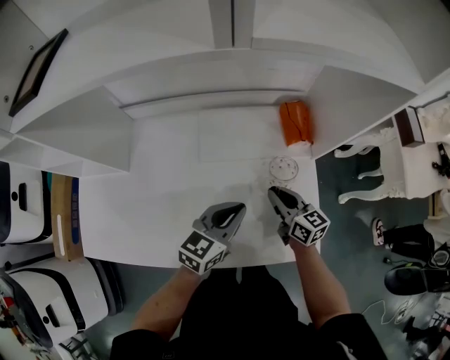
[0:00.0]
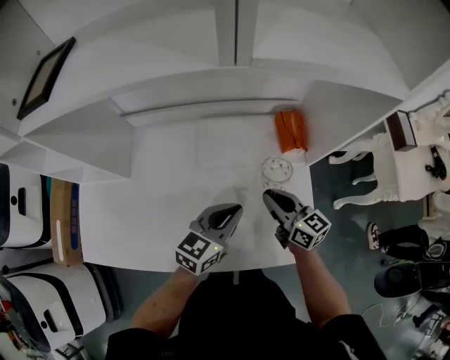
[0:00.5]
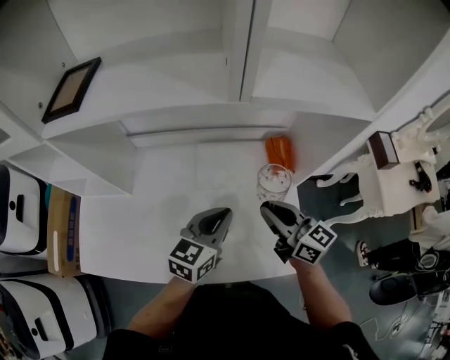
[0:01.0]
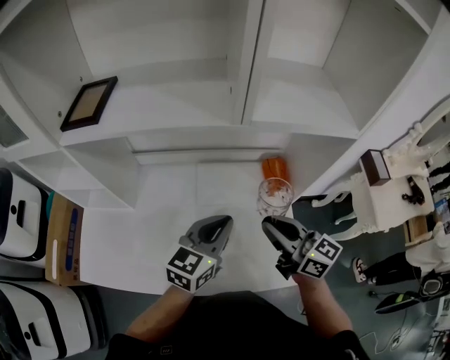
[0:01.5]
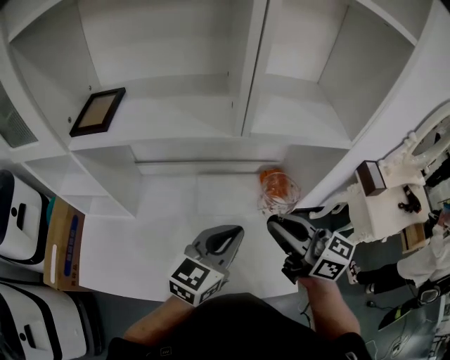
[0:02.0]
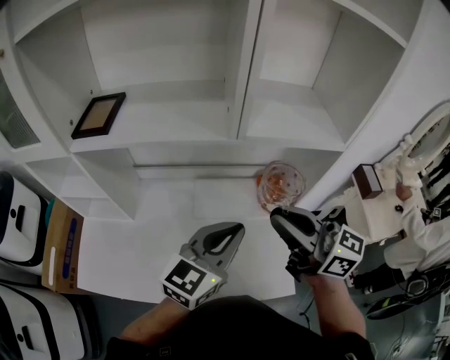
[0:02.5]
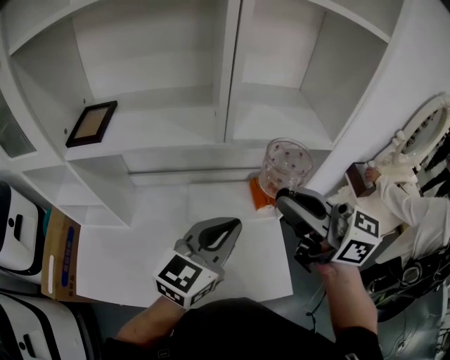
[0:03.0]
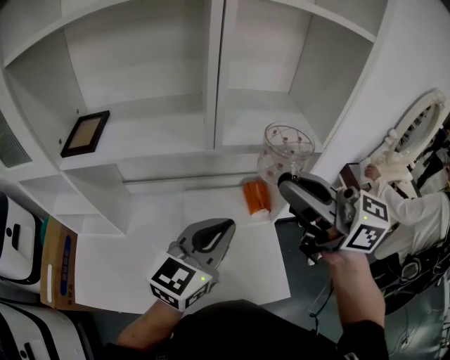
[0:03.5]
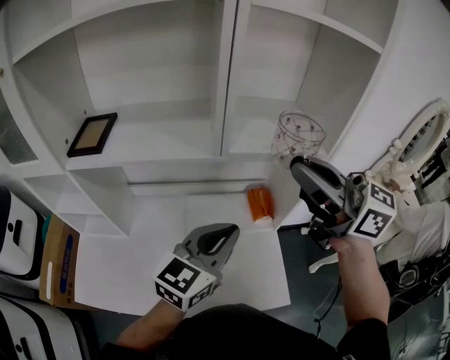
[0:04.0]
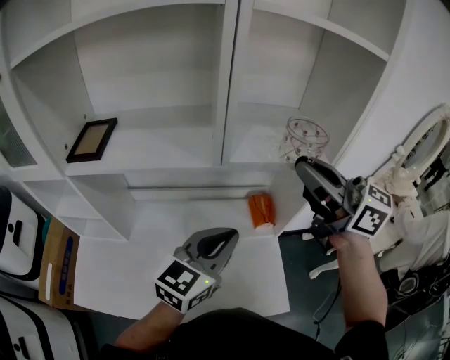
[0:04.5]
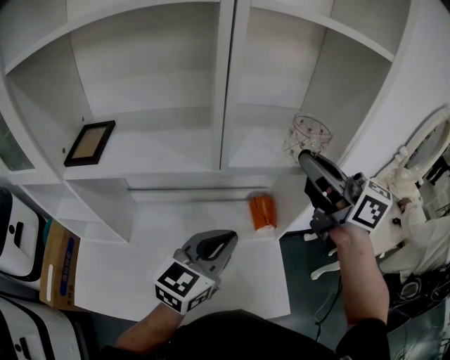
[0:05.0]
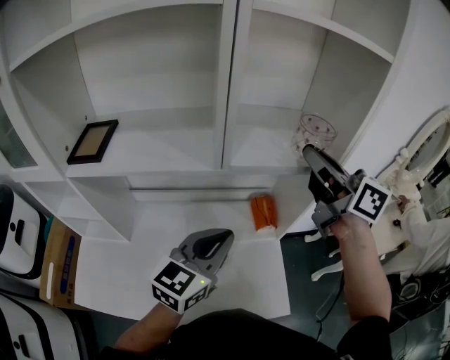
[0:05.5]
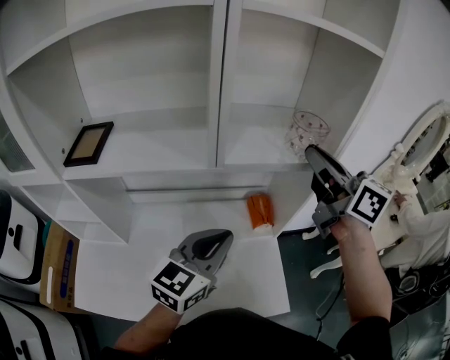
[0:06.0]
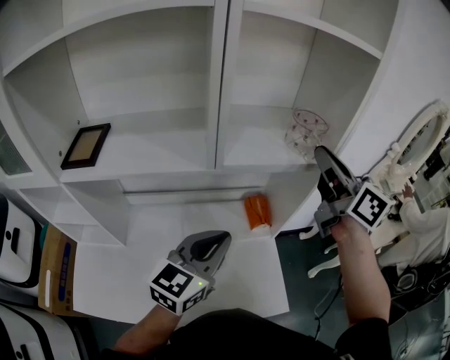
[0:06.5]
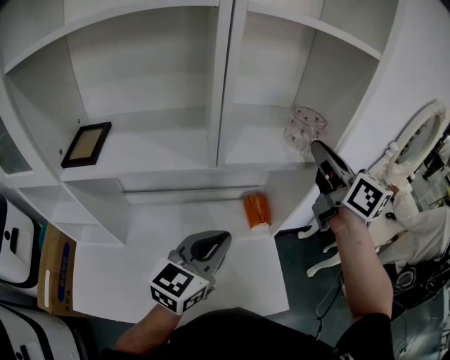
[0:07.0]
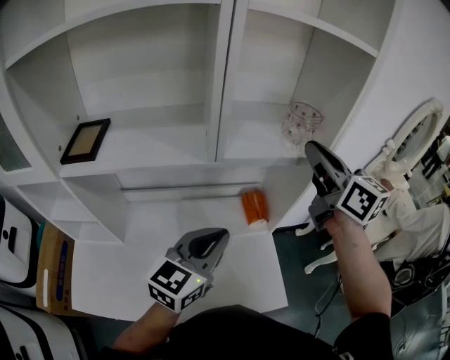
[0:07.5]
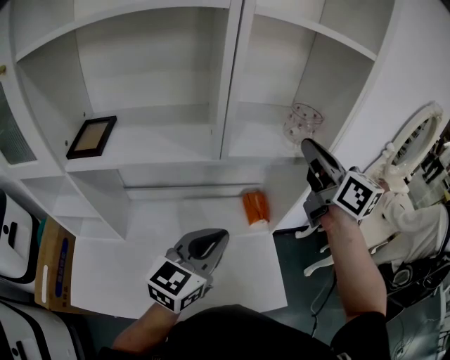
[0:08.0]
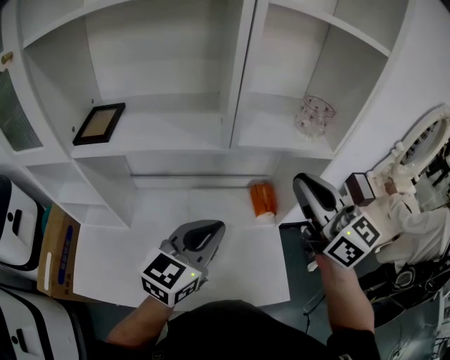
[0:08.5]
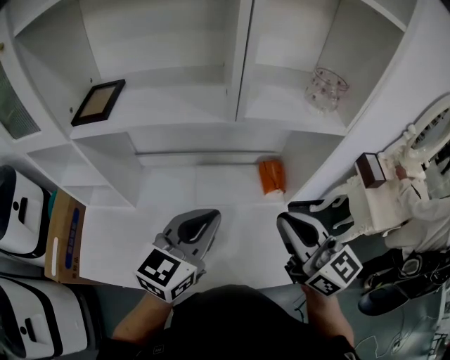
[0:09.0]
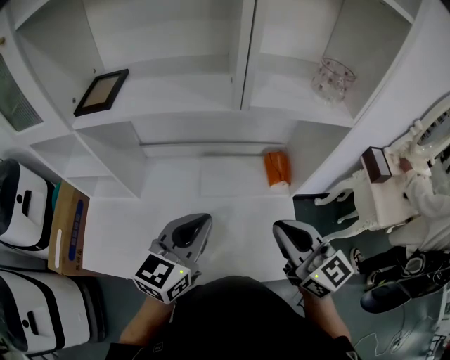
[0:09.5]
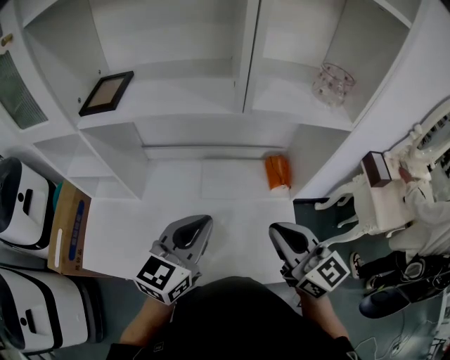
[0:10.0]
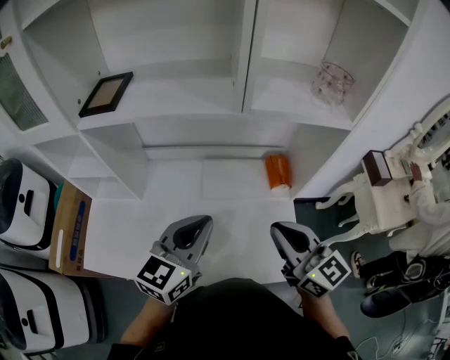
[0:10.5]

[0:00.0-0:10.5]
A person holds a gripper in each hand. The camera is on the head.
0:00.0 to 0:02.0: The left gripper heads upward, covering about 20 cm. Meanwhile the right gripper moves upward, approximately 35 cm, and rotates roughly 30 degrees.
0:02.0 to 0:04.0: The left gripper heads upward, covering some 10 cm. The right gripper goes roughly 20 cm upward.
0:04.0 to 0:06.5: The right gripper is displaced to the right and forward by roughly 15 cm, and turns by some 30 degrees.
0:06.5 to 0:08.5: The right gripper is displaced backward and to the left by some 15 cm, and swivels roughly 20 degrees.
0:08.5 to 0:10.5: The right gripper goes about 20 cm downward and backward; the left gripper moves approximately 10 cm.

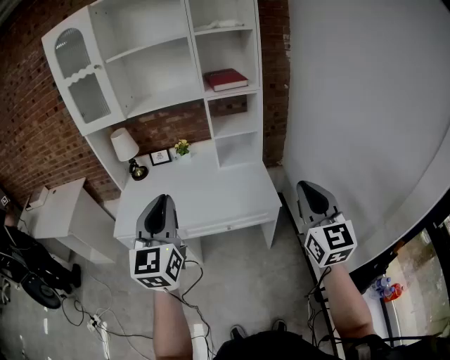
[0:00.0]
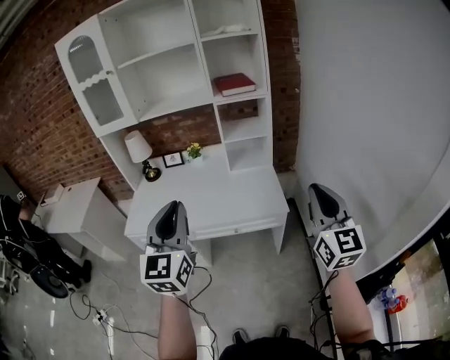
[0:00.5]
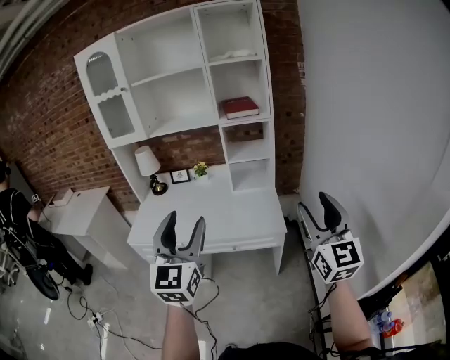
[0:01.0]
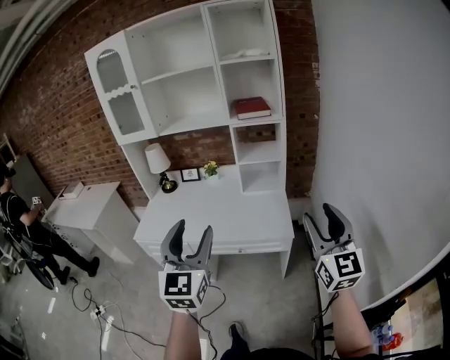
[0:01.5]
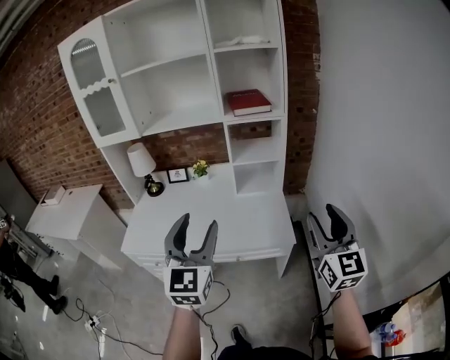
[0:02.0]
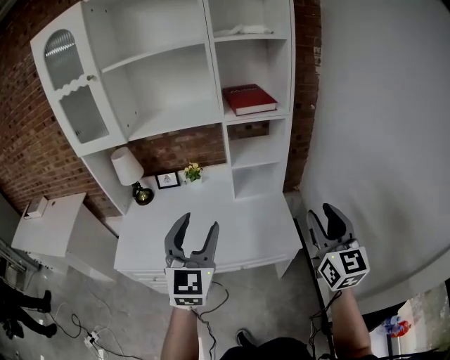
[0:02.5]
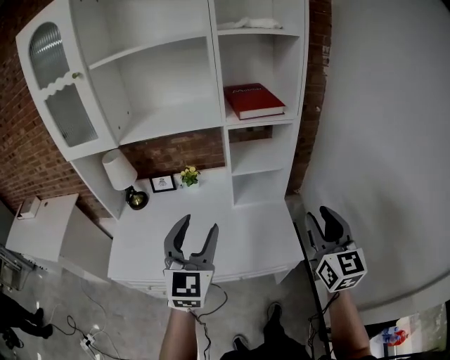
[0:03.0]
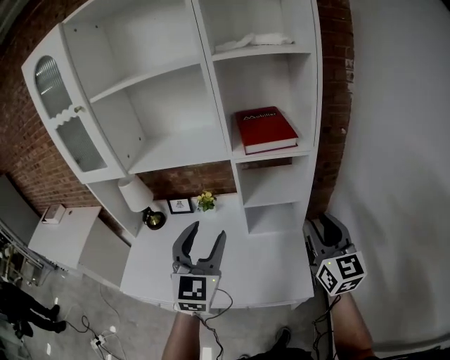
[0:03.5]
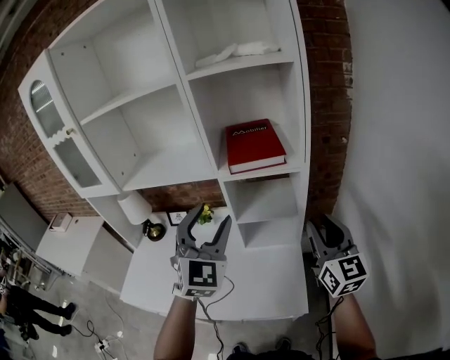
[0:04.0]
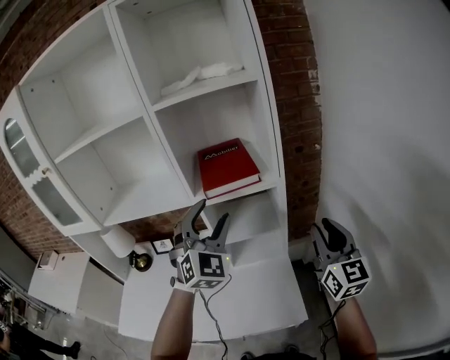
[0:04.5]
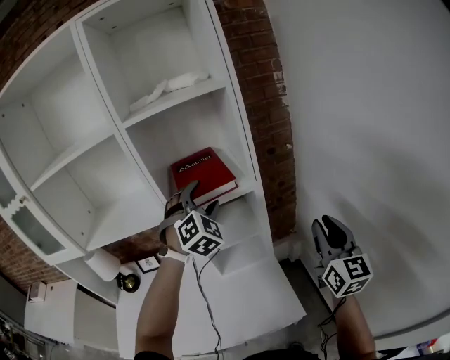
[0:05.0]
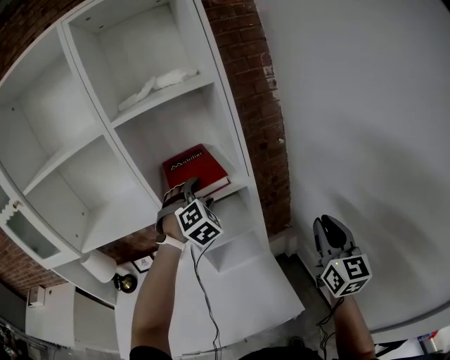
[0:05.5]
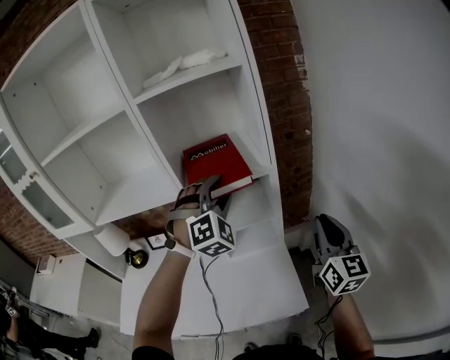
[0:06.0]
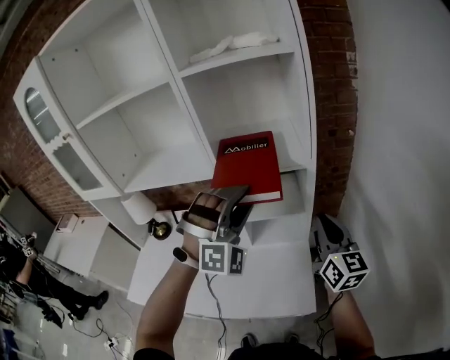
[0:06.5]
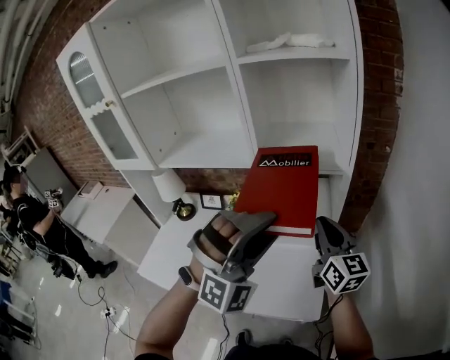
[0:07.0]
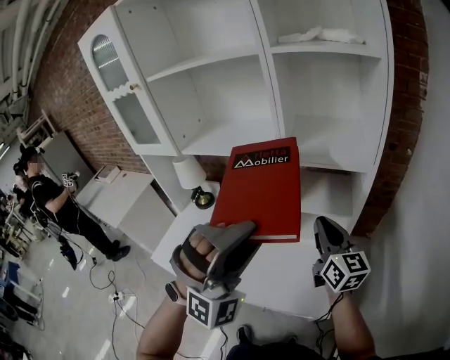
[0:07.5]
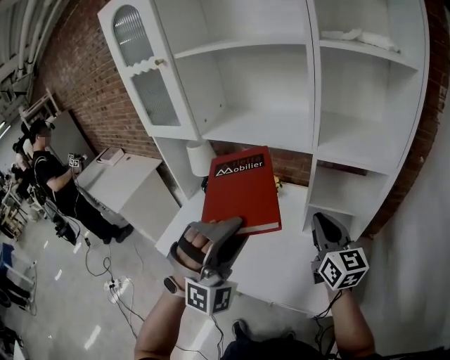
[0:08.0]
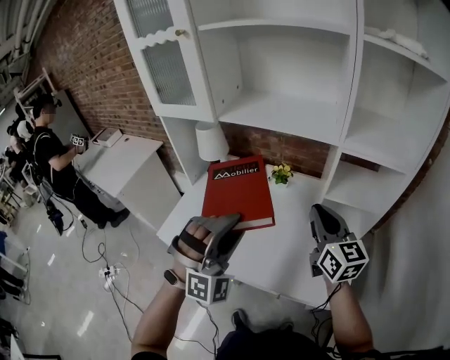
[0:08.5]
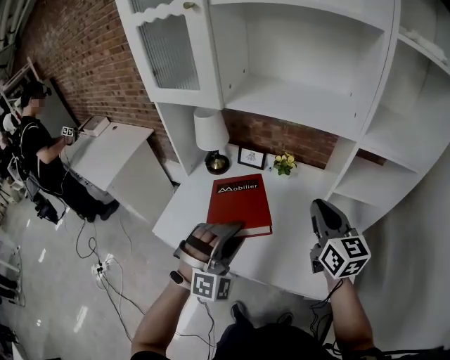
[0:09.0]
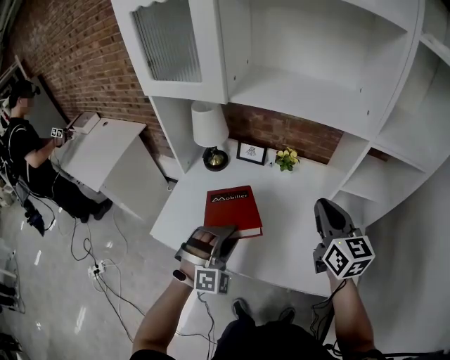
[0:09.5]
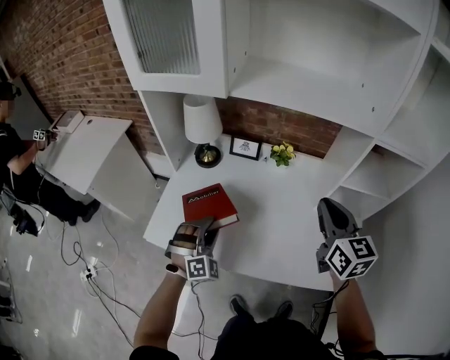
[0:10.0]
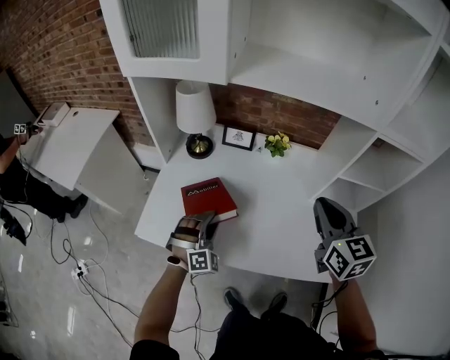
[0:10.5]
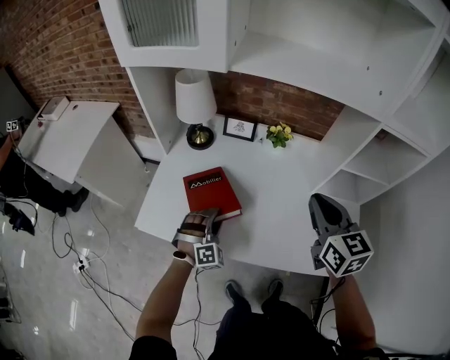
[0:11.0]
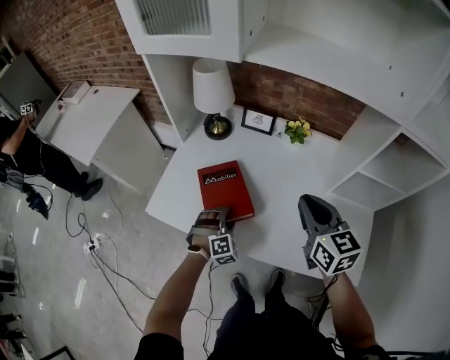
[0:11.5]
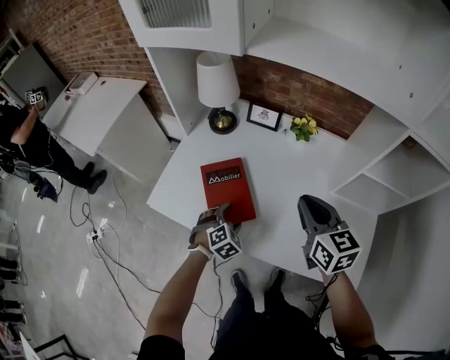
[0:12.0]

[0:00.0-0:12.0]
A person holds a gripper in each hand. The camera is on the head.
0:00.0 to 0:02.0: The right gripper travels forward and to the right by about 10 cm, and opens up. The left gripper is displaced to the right and forward by roughly 15 cm, and opens its fingers.
0:02.0 to 0:04.0: Both grippers travel together forward, some 35 cm. The left gripper swivels roughly 30 degrees.
0:04.0 to 0:06.0: The left gripper shifts about 15 cm forward and to the right, and swivels about 40 degrees; the right gripper moves to the right, about 10 cm.
0:06.0 to 0:08.0: The right gripper ends up some 30 cm from where it was, and swivels roughly 40 degrees. Meanwhile the left gripper moves about 35 cm, and swivels about 20 degrees.
0:08.0 to 0:10.0: The right gripper heads to the left, forward and downward, covering some 20 cm. Meanwhile the left gripper shifts approximately 40 cm downward, to the left and forward, and swivels approximately 30 degrees.
0:10.0 to 0:12.0: The left gripper moves downward, some 15 cm, swivels approximately 40 degrees, and opens its fingers. Meanwhile the right gripper shifts approximately 10 cm downward and to the left.

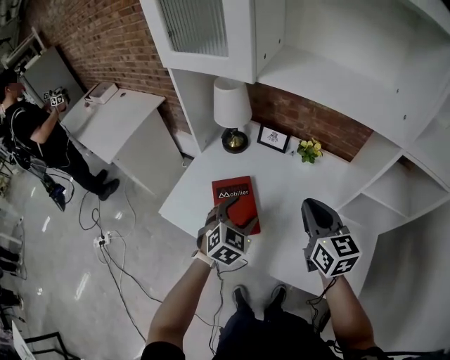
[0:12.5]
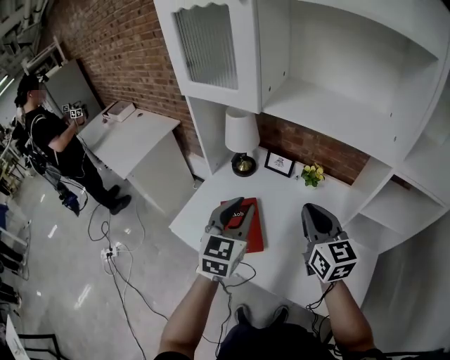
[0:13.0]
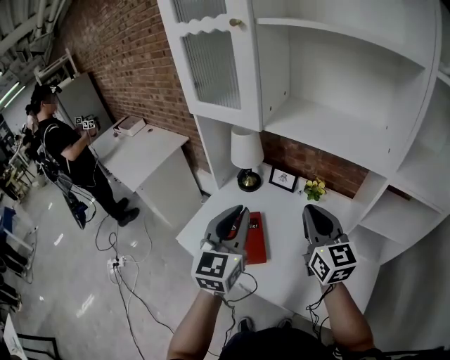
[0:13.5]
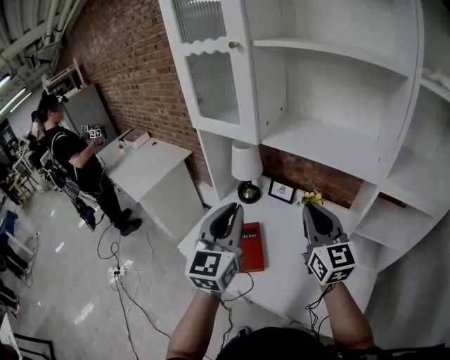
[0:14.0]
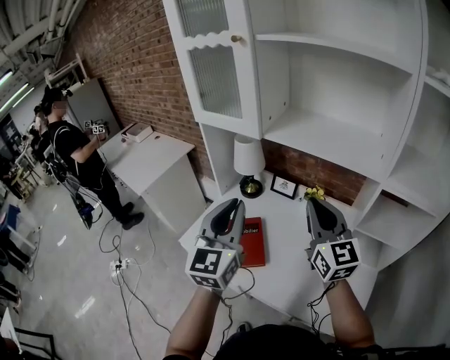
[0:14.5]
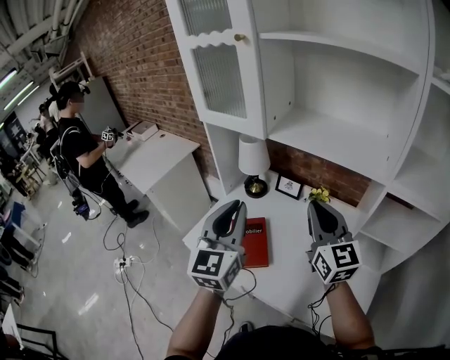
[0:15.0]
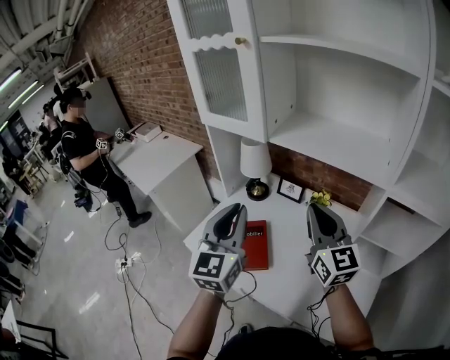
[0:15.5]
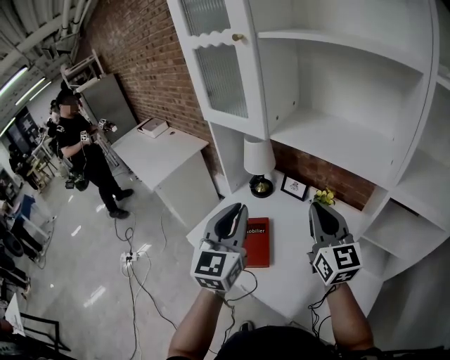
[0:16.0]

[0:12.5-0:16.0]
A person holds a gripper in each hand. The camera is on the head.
0:12.5 to 0:14.5: The left gripper goes about 30 cm upward, tilts its fingers approximately 40 degrees upward, and closes. The right gripper moves upward, approximately 15 cm, and rotates about 20 degrees.
0:14.5 to 0:16.0: The grippers move only a little.
